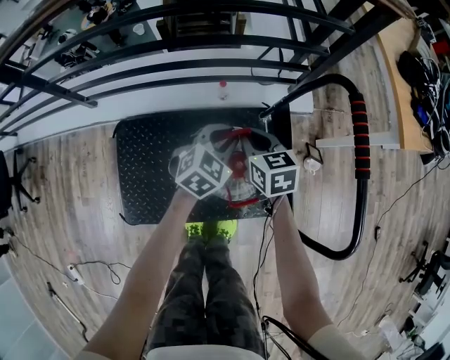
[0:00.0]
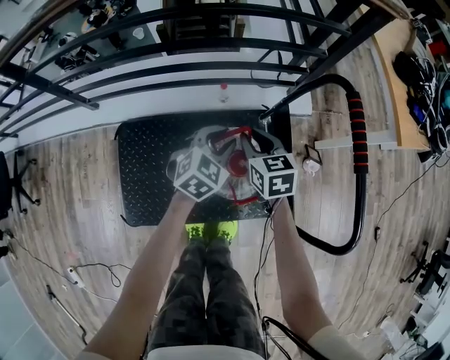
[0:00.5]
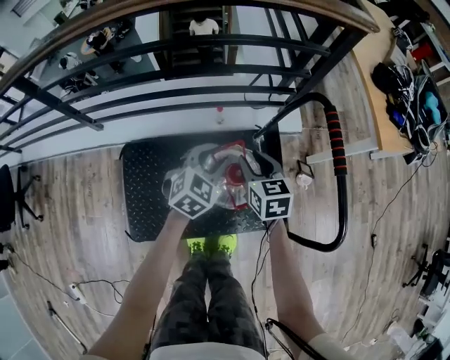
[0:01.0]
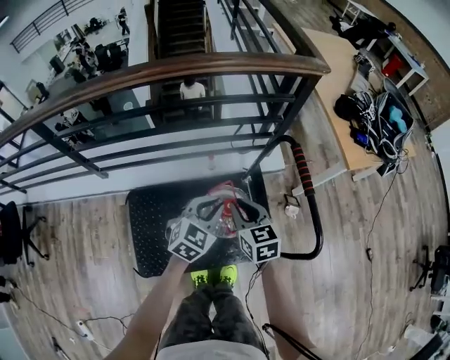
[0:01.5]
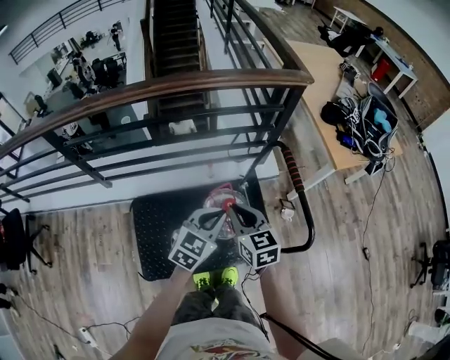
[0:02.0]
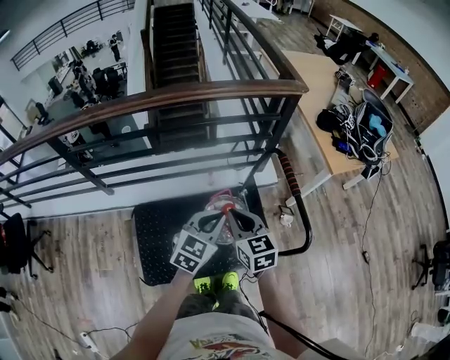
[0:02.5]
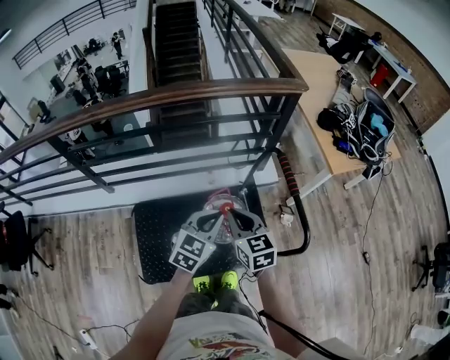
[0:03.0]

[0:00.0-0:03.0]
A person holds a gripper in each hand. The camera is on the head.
0.0 to 1.5 s: The grippers both shift upward and backward by approximately 25 cm.
1.5 to 3.0 s: The grippers both shift upward and backward by approximately 15 cm.

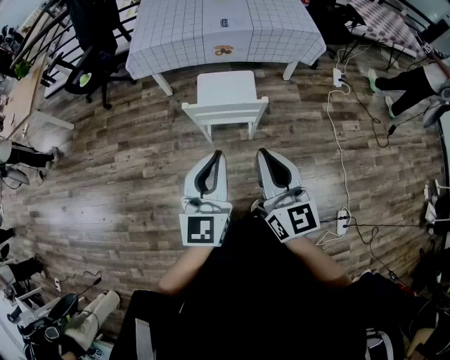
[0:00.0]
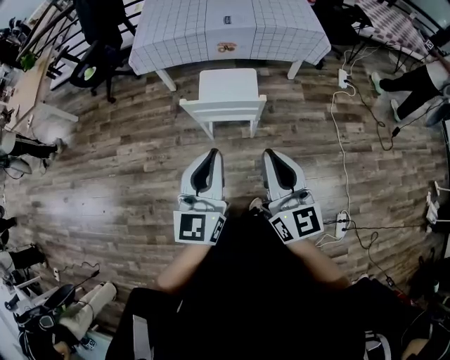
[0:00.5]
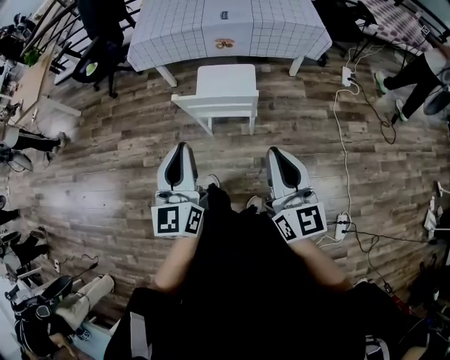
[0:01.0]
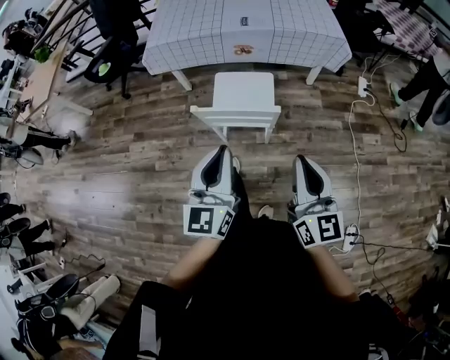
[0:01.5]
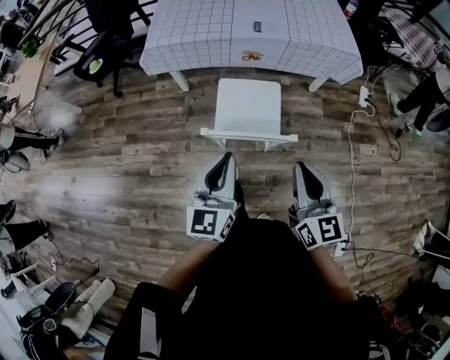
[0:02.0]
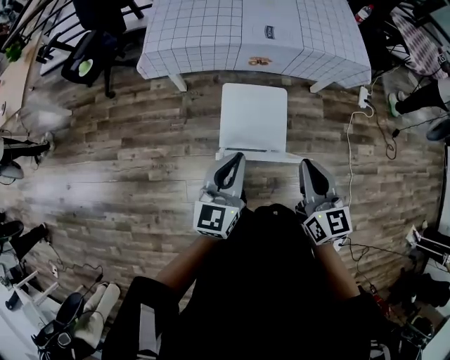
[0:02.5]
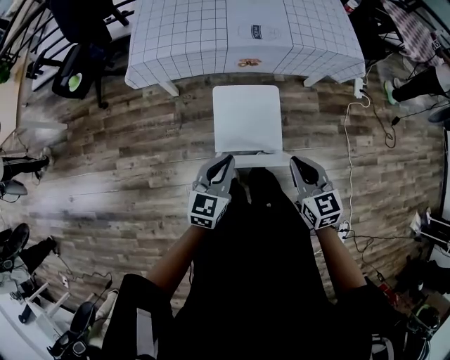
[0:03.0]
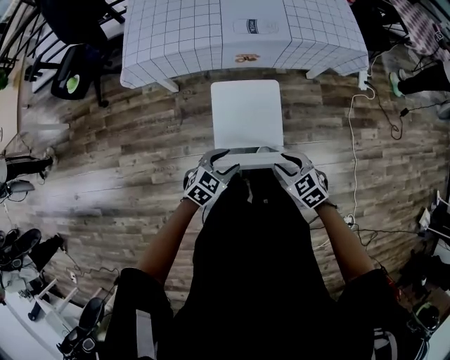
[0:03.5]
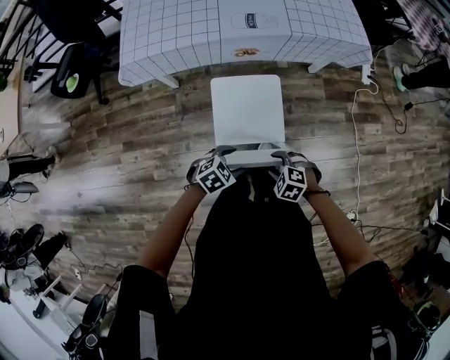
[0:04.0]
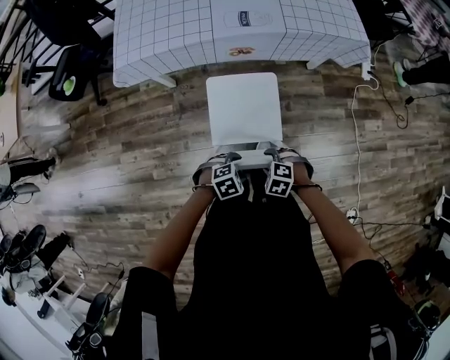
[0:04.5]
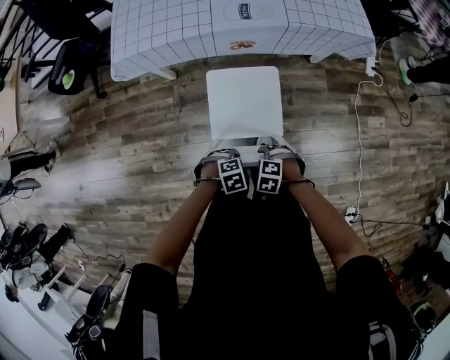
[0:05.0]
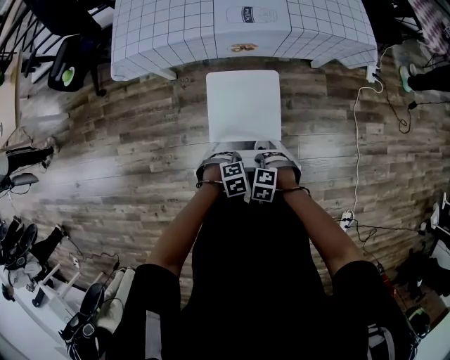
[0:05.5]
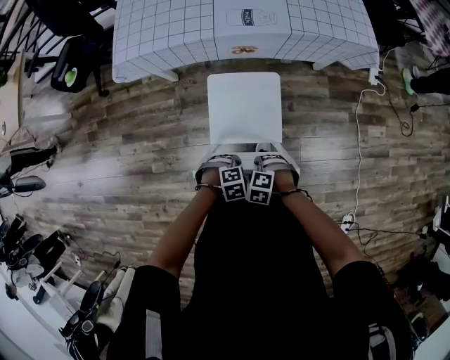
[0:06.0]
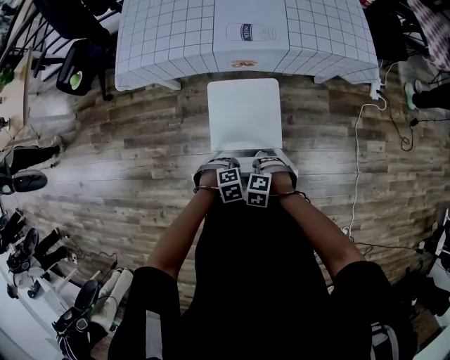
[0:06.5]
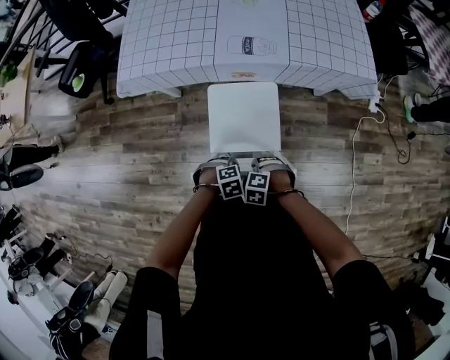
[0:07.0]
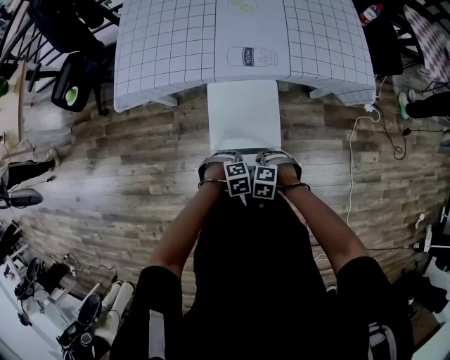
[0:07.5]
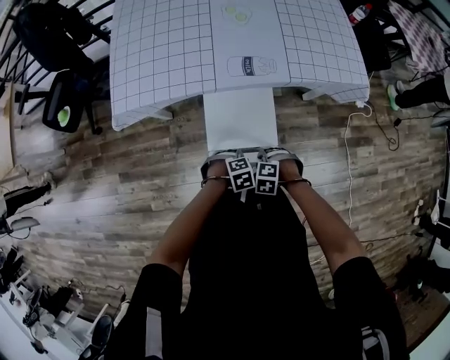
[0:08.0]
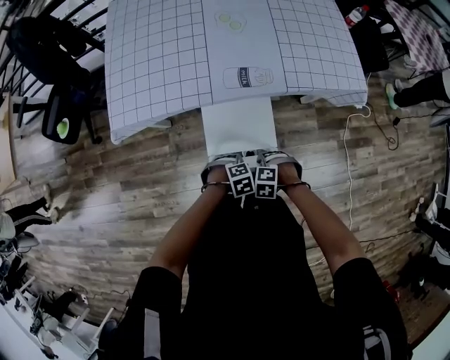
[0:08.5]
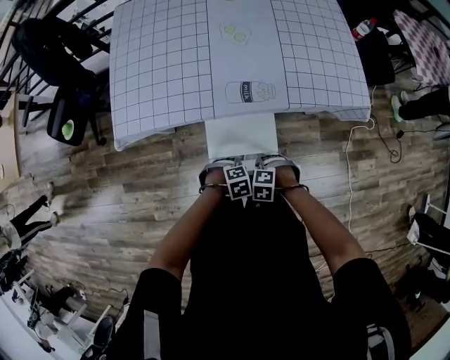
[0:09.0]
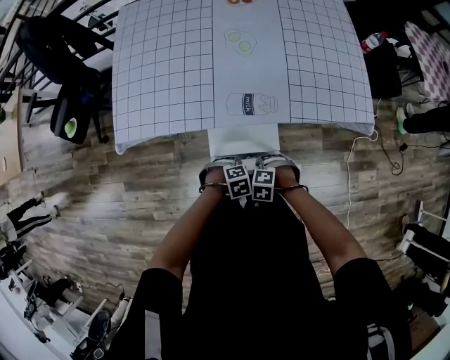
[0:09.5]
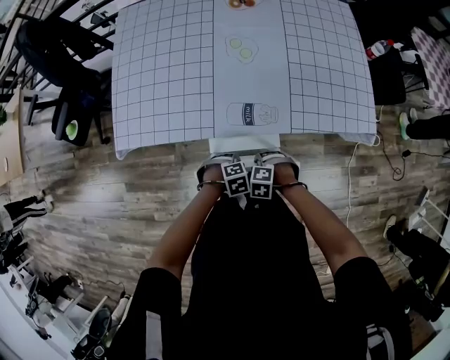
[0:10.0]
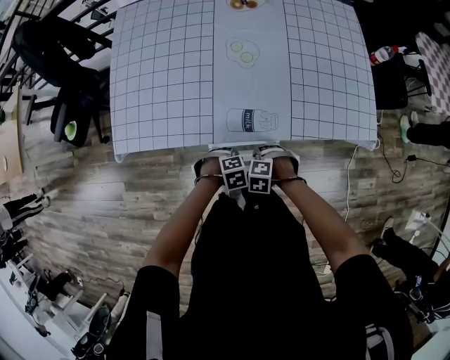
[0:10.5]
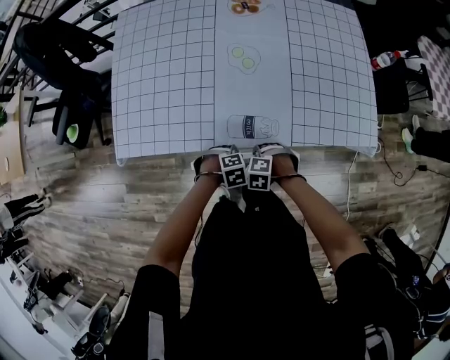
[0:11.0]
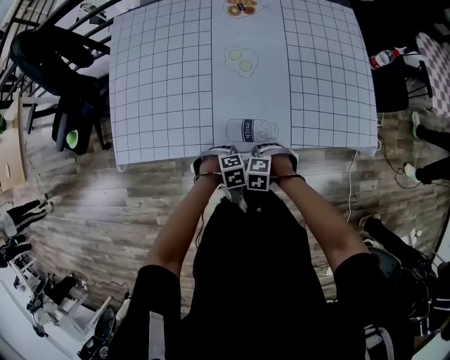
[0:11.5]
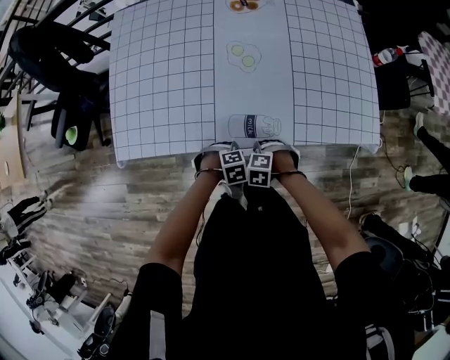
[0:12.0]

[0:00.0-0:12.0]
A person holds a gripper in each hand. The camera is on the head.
0.0 to 2.0 s: The grippers both shift forward and downward by approximately 20 cm.
2.0 to 4.0 s: Both grippers travel together downward, about 30 cm. The right gripper angles its fingers downward, by approximately 60 degrees, and opens. Meanwhile the left gripper tilts its fingers some 50 degrees downward, and opens up.
4.0 to 6.0 s: The right gripper is displaced downward by about 5 cm, and closes its fingers. Meanwhile the left gripper is displaced downward by approximately 10 cm, turns by some 30 degrees, and closes.
6.0 to 8.0 s: The right gripper moves some 20 cm; the left gripper changes place by roughly 20 cm.
8.0 to 10.0 s: The left gripper ends up some 20 cm from where it was, while the right gripper changes place by some 20 cm.
10.0 to 12.0 s: The right gripper moves about 10 cm; the left gripper shifts by some 10 cm.

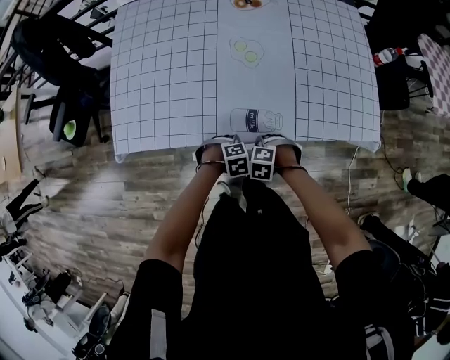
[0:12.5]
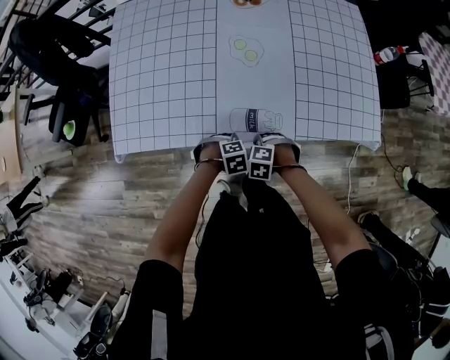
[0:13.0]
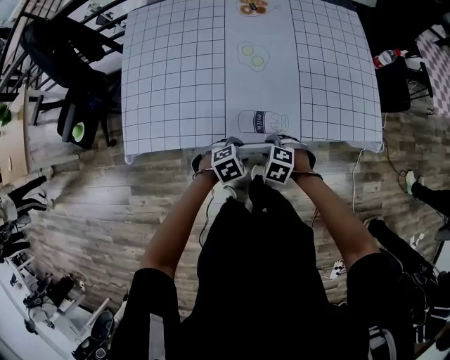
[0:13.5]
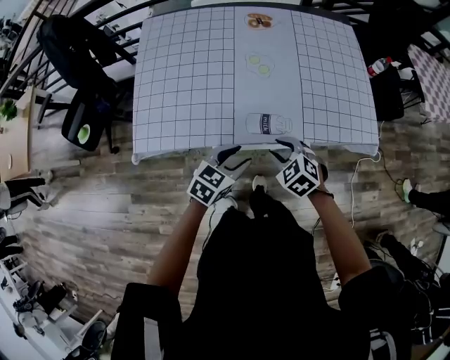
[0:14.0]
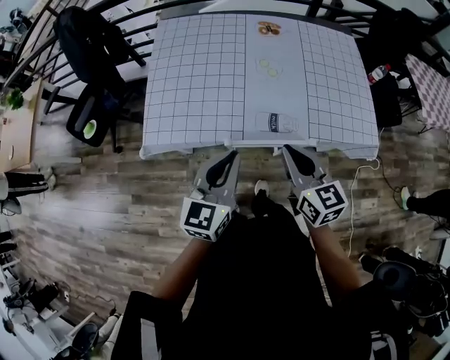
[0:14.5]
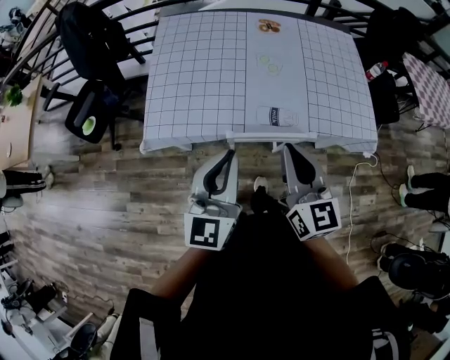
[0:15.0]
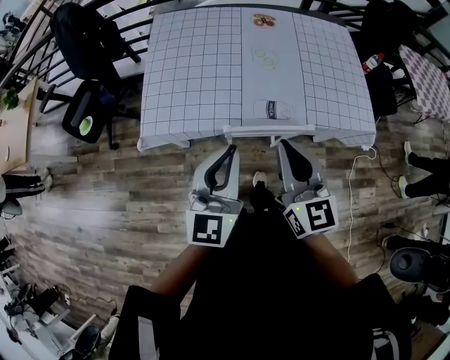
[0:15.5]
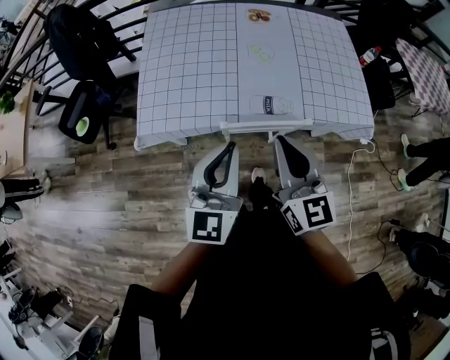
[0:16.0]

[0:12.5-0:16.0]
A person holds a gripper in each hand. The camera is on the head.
12.5 to 14.5 s: The grippers both shift upward by some 35 cm. The right gripper tilts its fingers approximately 60 degrees upward, and opens, then closes again. The left gripper tilts its fingers approximately 70 degrees upward, and opens, then closes once more.
14.5 to 16.0 s: Both grippers move upward, some 10 cm.

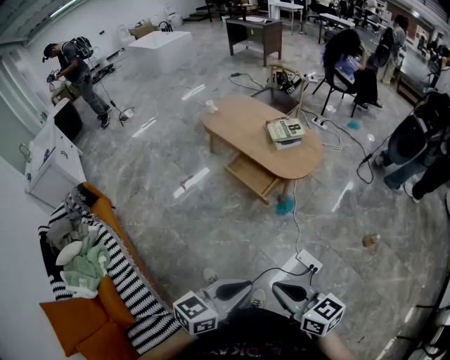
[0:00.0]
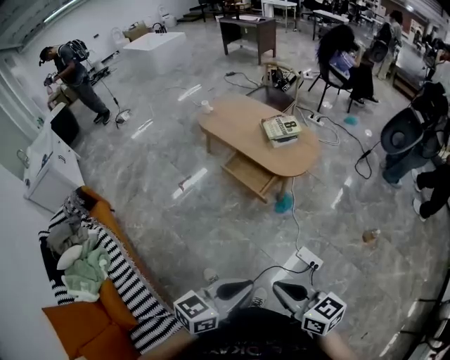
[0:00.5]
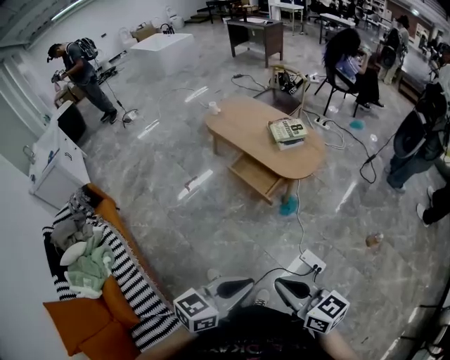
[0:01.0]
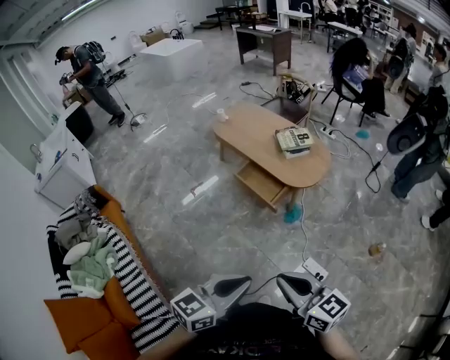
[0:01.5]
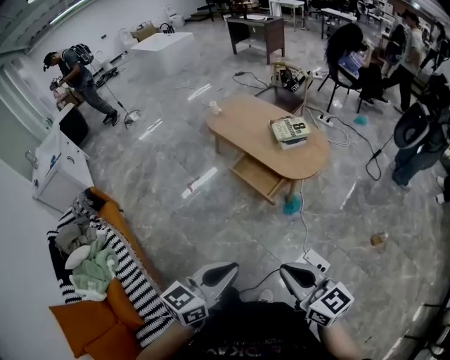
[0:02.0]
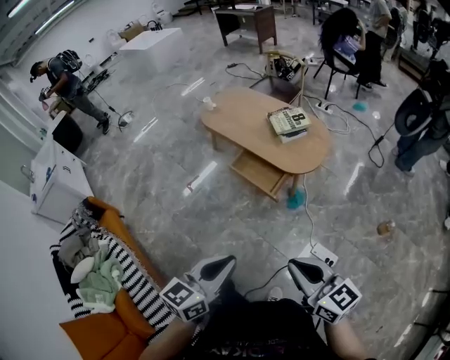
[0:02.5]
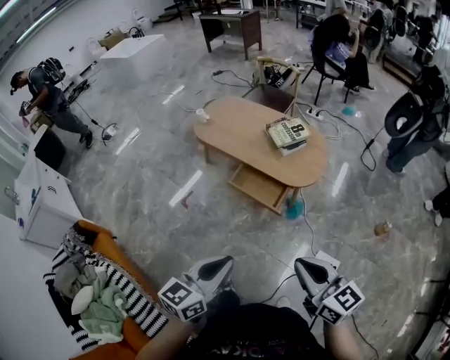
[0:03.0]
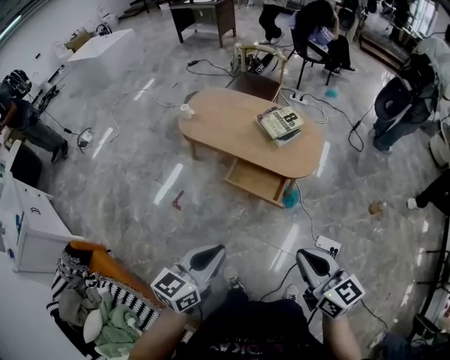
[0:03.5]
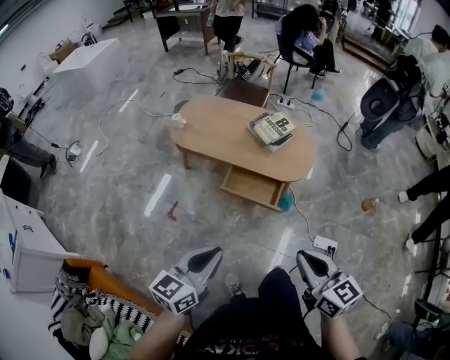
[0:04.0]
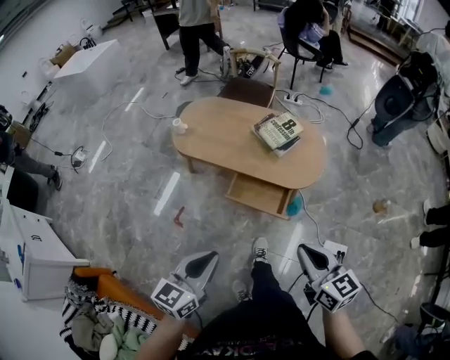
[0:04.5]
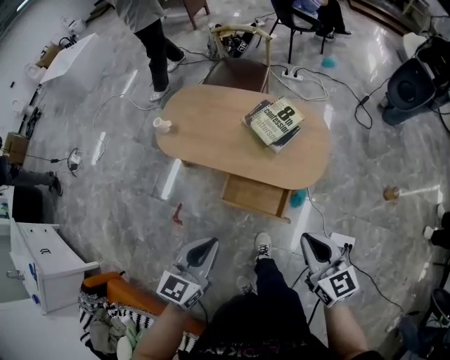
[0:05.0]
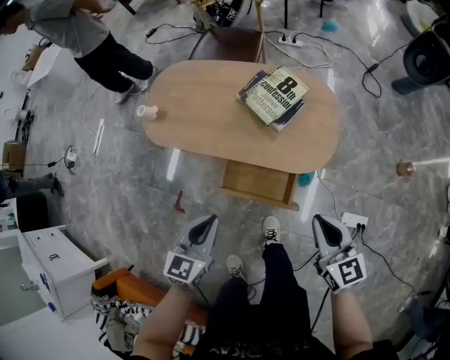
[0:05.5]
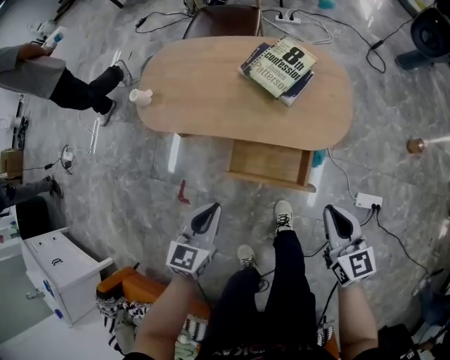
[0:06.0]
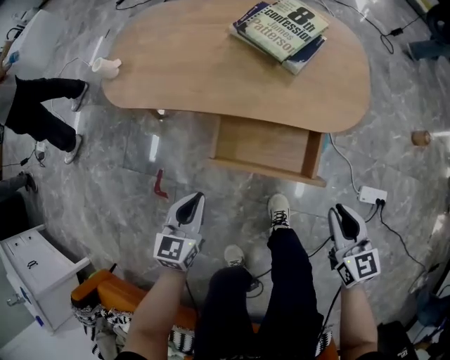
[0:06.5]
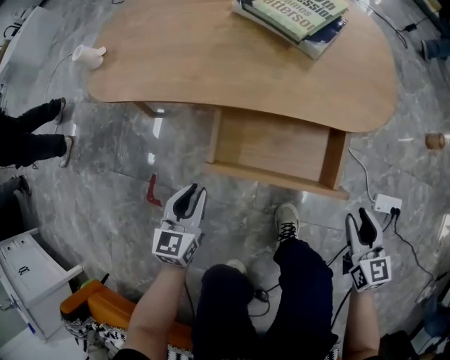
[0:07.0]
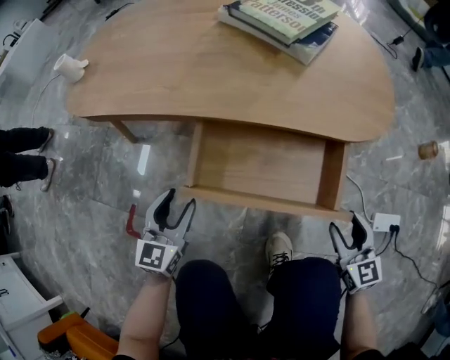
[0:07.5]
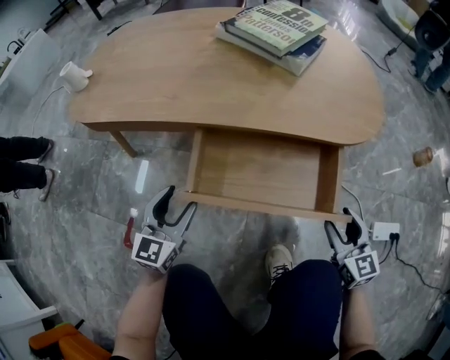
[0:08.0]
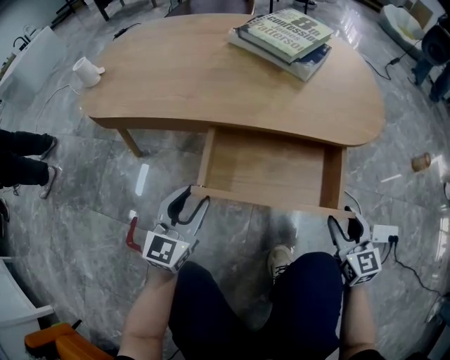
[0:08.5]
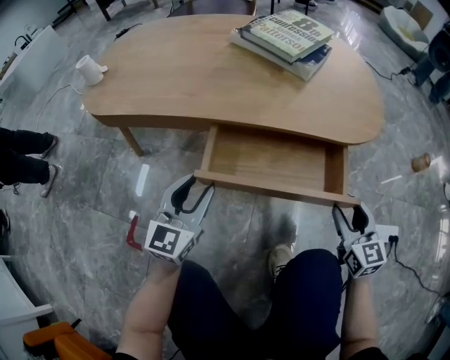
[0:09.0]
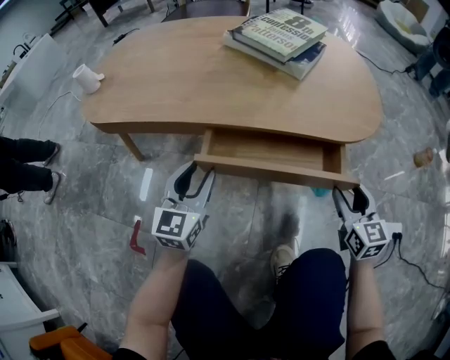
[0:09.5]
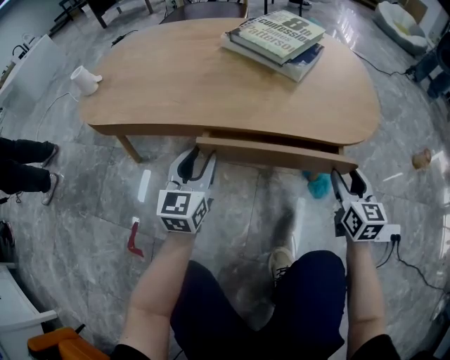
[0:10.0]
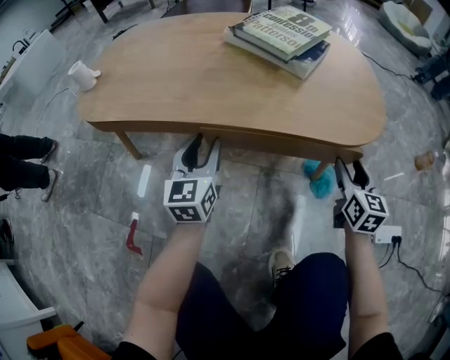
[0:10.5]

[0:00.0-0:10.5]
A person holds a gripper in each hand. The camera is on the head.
0.0 to 2.0 s: Both grippers travel together forward, some 5 cm.
2.0 to 4.0 s: The right gripper shifts by approximately 30 cm, and swivels about 30 degrees, while the left gripper changes place by roughly 40 cm.
4.0 to 6.5 s: Both grippers move downward and forward, approximately 50 cm. The right gripper changes its angle by some 20 degrees. Meanwhile the left gripper rotates about 20 degrees.
6.5 to 8.5 s: The left gripper goes roughly 15 cm downward and forward, rotates roughly 30 degrees, and opens its fingers; the right gripper heads downward, covering some 20 cm, and opens.
8.5 to 10.5 s: Both grippers travel together forward, some 15 cm.
